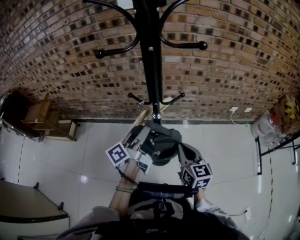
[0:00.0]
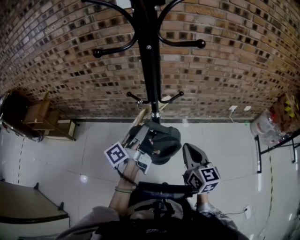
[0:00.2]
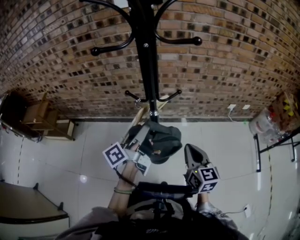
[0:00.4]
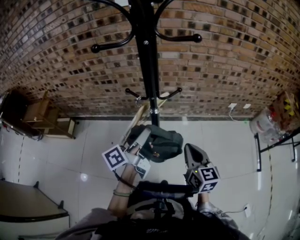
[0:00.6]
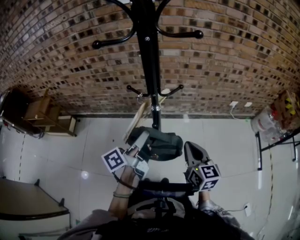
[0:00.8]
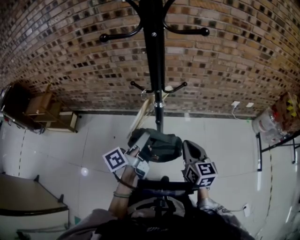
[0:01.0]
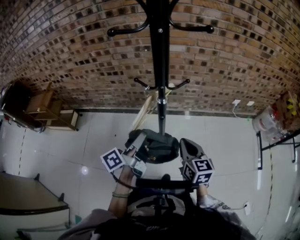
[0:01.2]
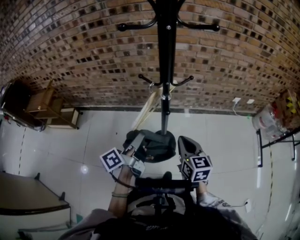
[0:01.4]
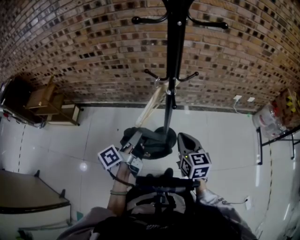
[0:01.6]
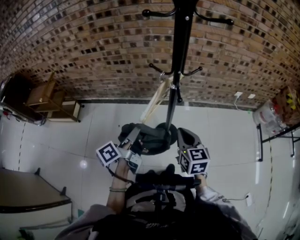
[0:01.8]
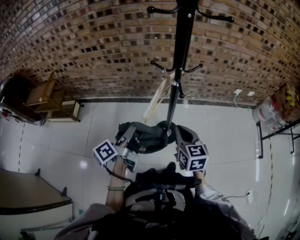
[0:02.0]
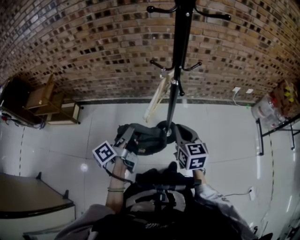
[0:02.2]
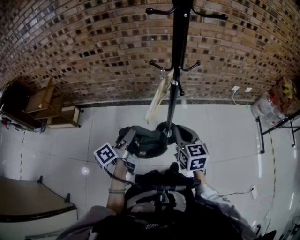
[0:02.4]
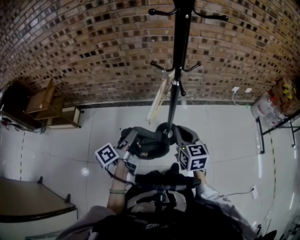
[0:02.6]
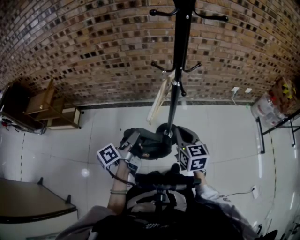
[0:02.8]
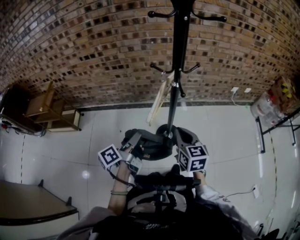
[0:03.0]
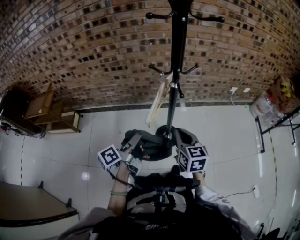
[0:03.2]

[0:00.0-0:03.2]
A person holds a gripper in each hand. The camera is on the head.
0:00.0 to 0:01.6: The right gripper changes place by some 10 cm.
0:01.6 to 0:03.2: The right gripper shifts by roughly 5 cm.

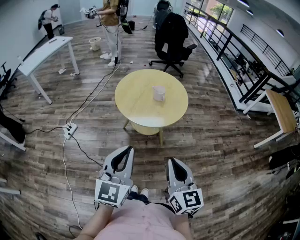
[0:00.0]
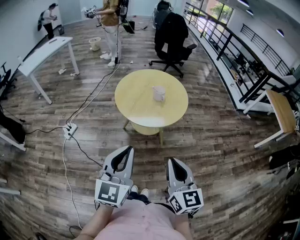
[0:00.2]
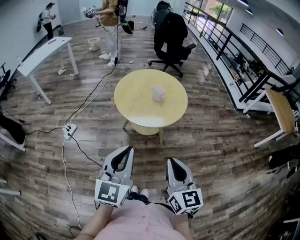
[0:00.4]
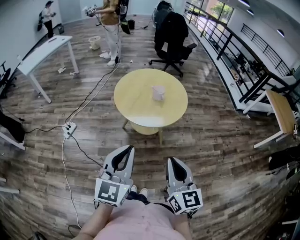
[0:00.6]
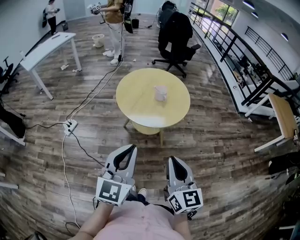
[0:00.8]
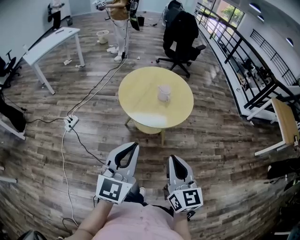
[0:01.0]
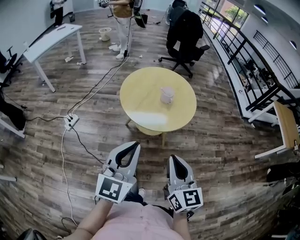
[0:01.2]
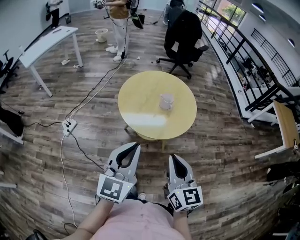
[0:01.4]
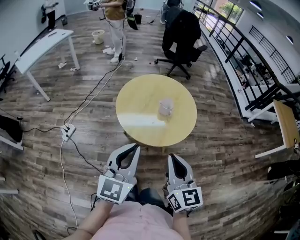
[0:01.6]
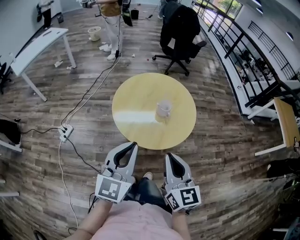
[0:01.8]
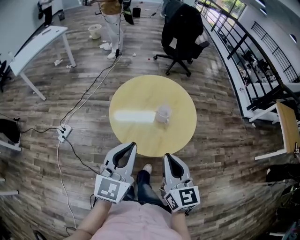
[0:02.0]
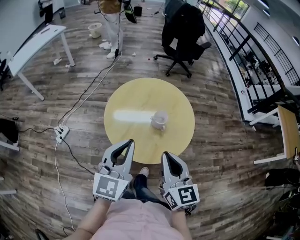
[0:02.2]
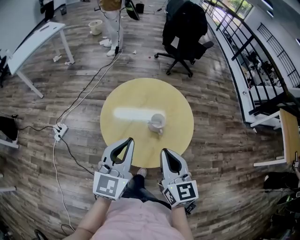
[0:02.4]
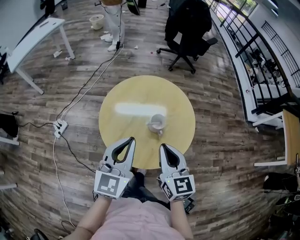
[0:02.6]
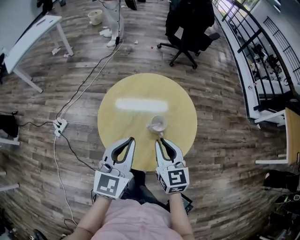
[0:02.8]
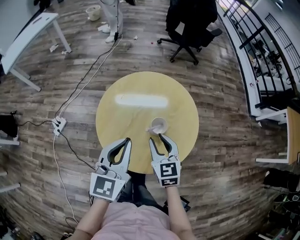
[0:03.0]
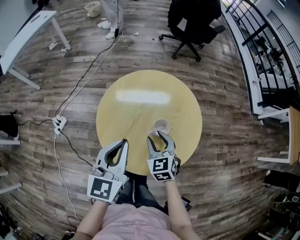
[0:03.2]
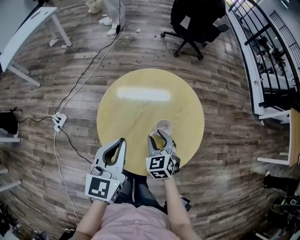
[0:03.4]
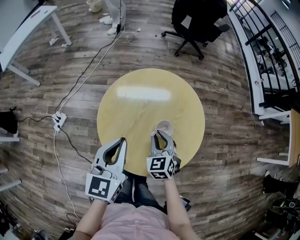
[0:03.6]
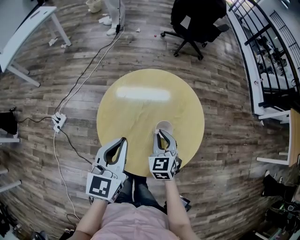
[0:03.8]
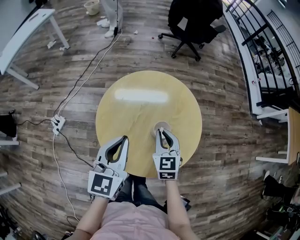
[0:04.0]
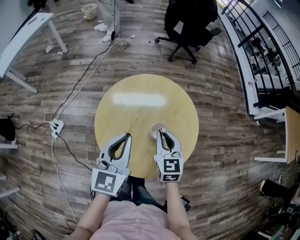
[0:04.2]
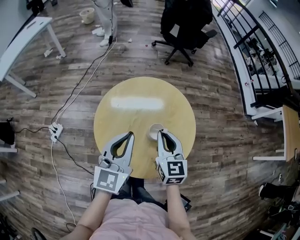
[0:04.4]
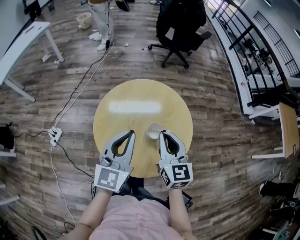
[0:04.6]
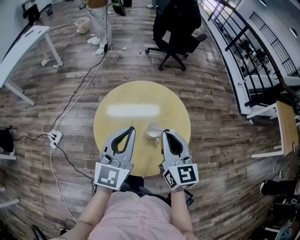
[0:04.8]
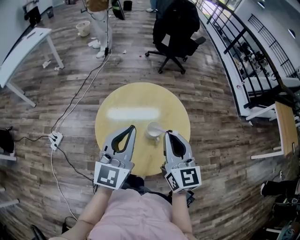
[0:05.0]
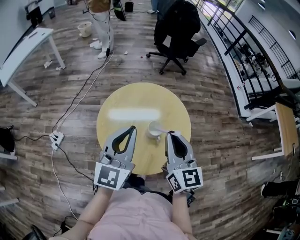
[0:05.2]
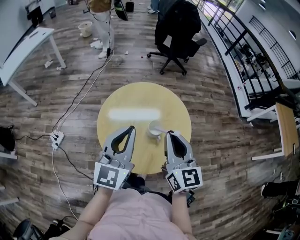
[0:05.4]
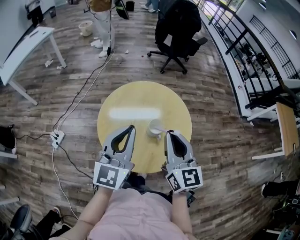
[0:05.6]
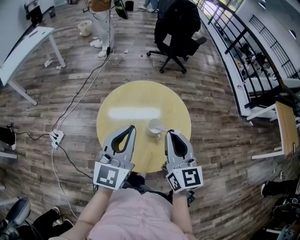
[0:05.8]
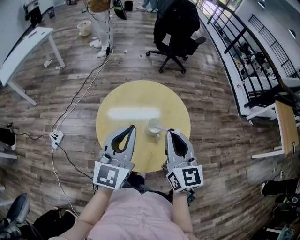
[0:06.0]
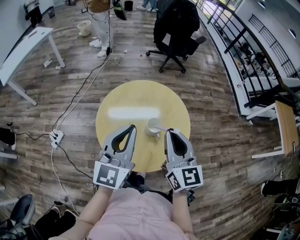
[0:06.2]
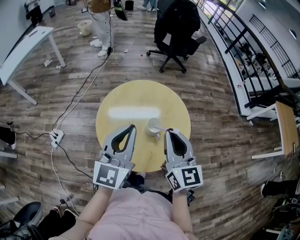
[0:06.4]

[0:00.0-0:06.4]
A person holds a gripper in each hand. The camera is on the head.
0:00.0 to 0:01.6: Both grippers move forward, some 15 cm.
0:01.6 to 0:03.2: The left gripper heads forward, covering approximately 25 cm, while the right gripper goes about 40 cm forward and downward, points its fingers some 30 degrees further downward, and opens its fingers.
0:03.2 to 0:04.8: The left gripper moves upward, some 5 cm; the right gripper heads upward, covering about 20 cm, turns by about 40 degrees, and closes up.
0:04.8 to 0:06.4: The right gripper ends up about 5 cm from where it was.

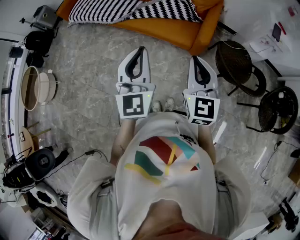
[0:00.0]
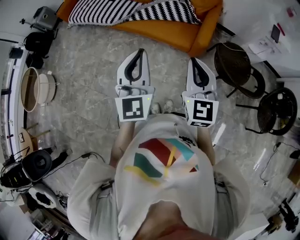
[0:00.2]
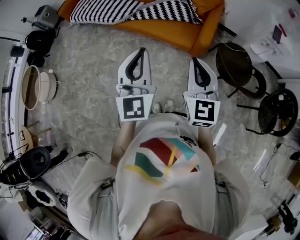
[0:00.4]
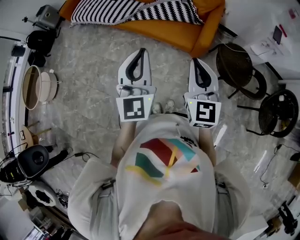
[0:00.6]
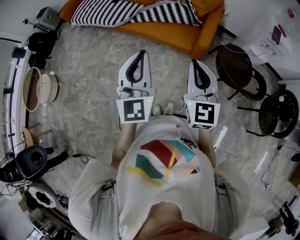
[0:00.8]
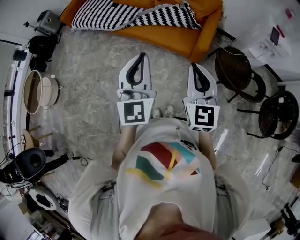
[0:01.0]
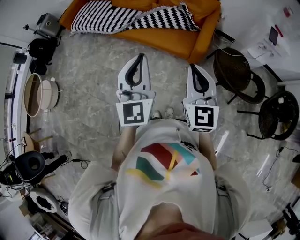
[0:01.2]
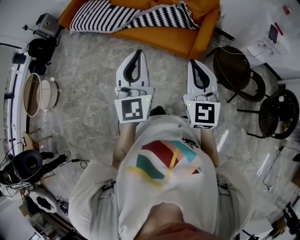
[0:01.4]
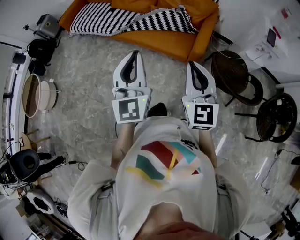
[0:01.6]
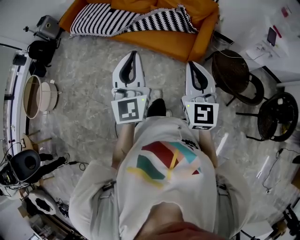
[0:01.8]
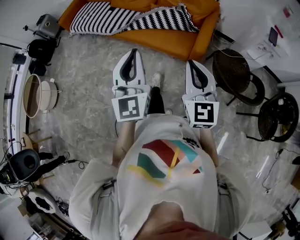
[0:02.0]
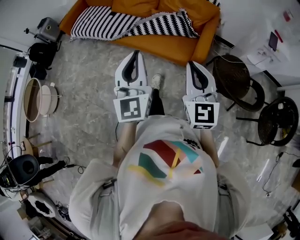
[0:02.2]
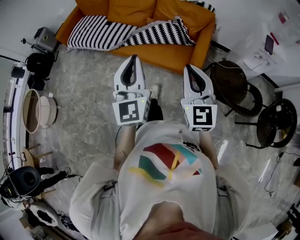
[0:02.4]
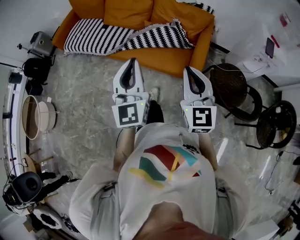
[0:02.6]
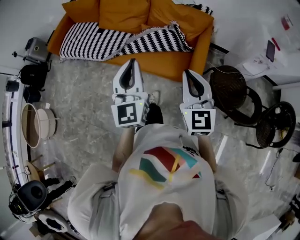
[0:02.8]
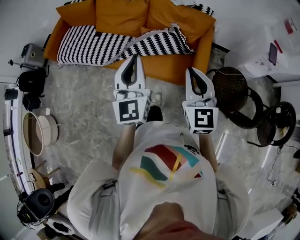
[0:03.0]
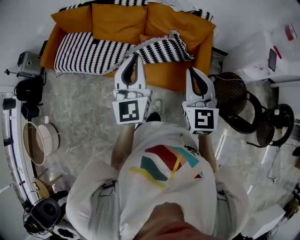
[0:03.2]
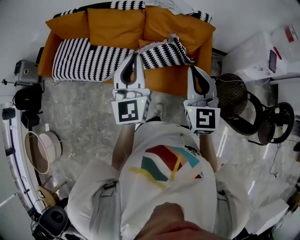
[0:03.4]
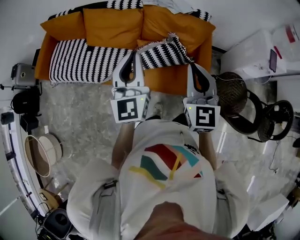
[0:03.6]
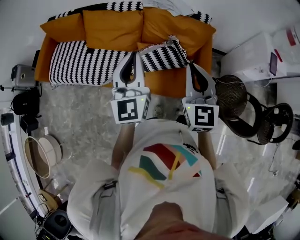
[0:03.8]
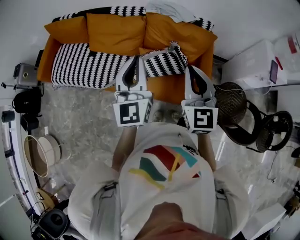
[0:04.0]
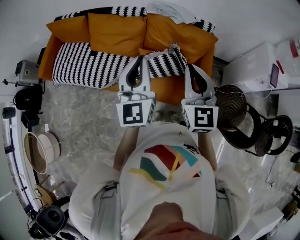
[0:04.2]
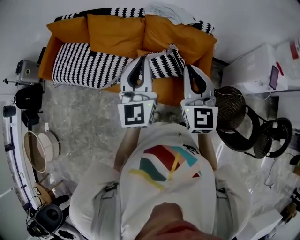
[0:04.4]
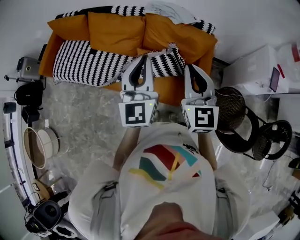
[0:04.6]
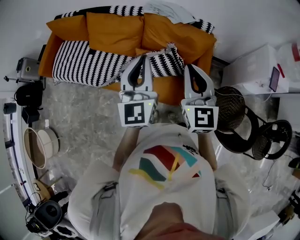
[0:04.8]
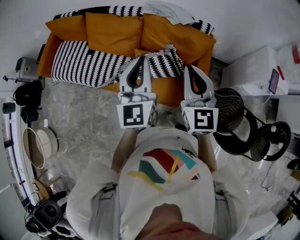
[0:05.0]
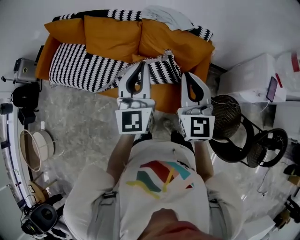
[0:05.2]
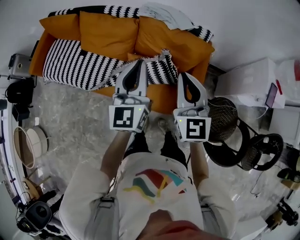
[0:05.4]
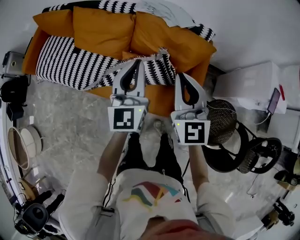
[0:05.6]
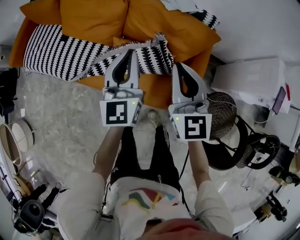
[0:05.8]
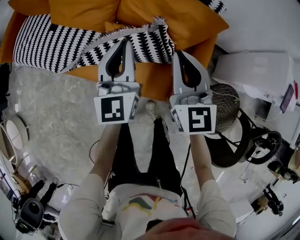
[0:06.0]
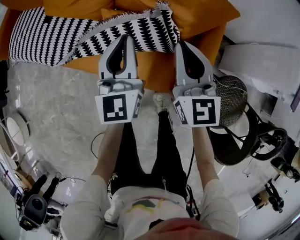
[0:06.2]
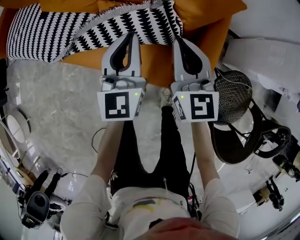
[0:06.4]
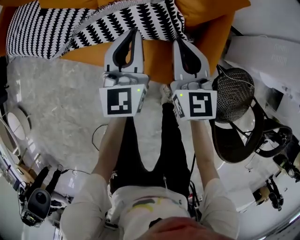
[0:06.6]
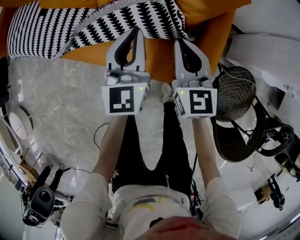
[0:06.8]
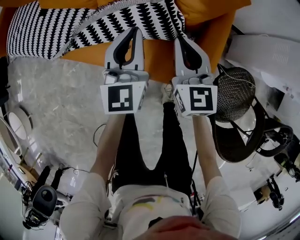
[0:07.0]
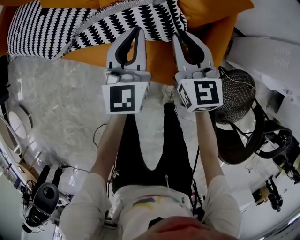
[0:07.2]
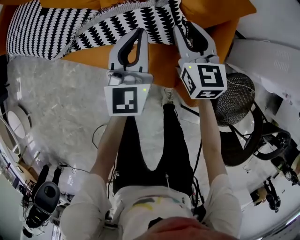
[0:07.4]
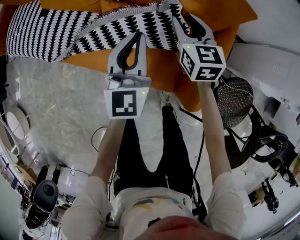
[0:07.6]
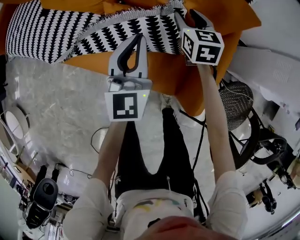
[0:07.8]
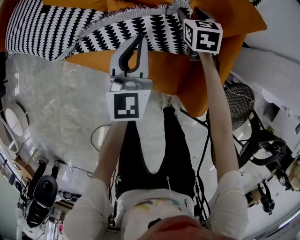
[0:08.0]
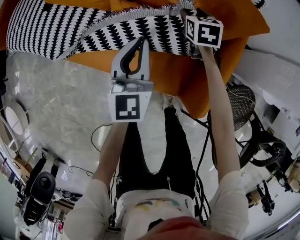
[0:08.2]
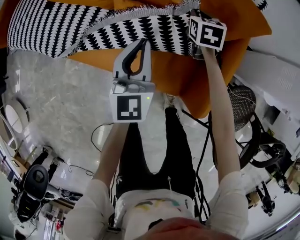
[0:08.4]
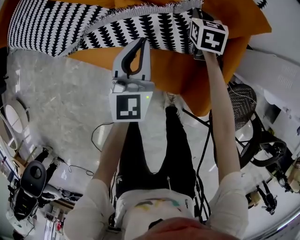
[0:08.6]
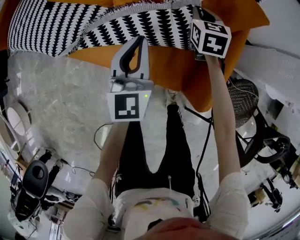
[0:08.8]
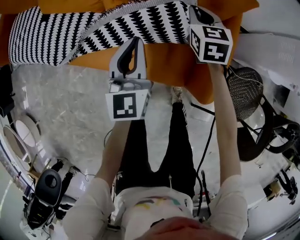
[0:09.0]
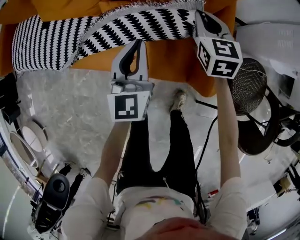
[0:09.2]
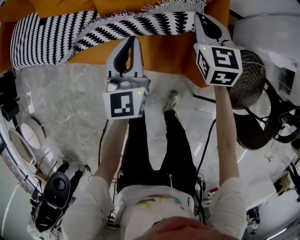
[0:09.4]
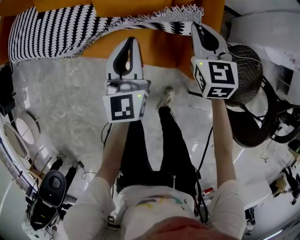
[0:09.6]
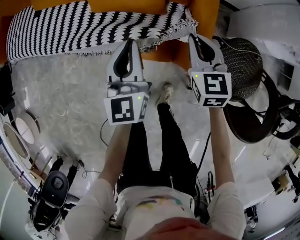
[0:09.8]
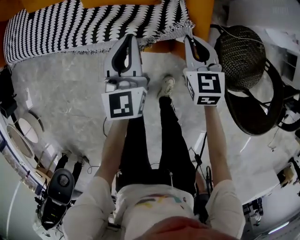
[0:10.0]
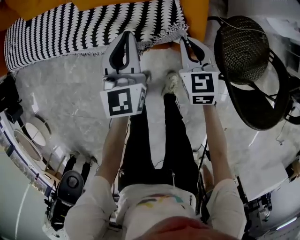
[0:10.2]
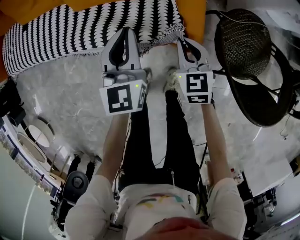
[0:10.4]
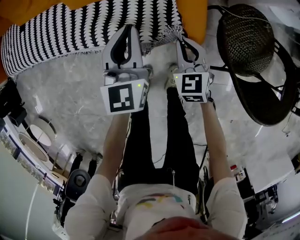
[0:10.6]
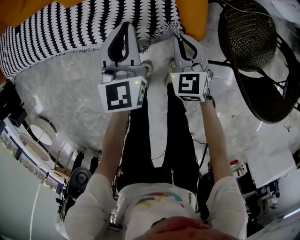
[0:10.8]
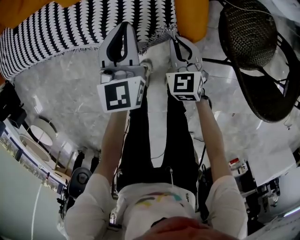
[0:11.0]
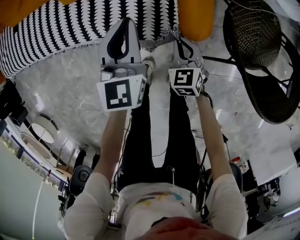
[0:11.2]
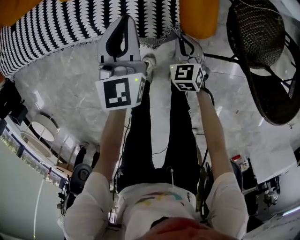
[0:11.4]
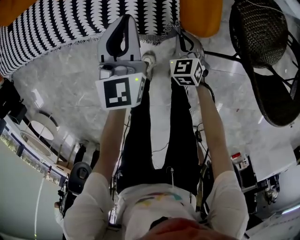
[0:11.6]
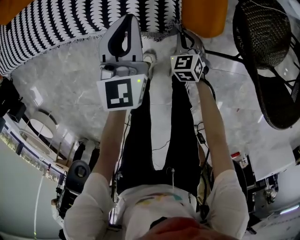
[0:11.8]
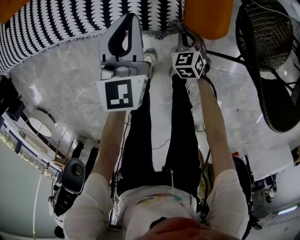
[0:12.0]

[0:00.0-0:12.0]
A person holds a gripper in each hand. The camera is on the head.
0:00.0 to 0:01.6: The grippers move only a little.
0:01.6 to 0:03.0: Both grippers travel together forward, some 25 cm.
0:03.0 to 0:04.4: Both grippers travel together forward, about 20 cm.
0:04.4 to 0:06.0: Both grippers travel together downward and forward, about 25 cm.
0:06.0 to 0:07.6: The left gripper is displaced downward by some 10 cm. Meanwhile the right gripper heads downward and forward, covering approximately 20 cm, and opens.
0:07.6 to 0:09.0: The right gripper moves roughly 10 cm downward and comes back, and closes up.
0:09.0 to 0:10.4: The right gripper travels backward by about 30 cm. The left gripper shifts about 15 cm backward and to the right.
0:10.4 to 0:12.0: The right gripper goes approximately 20 cm downward, and changes its angle by some 20 degrees. Meanwhile the left gripper moves downward, roughly 10 cm.

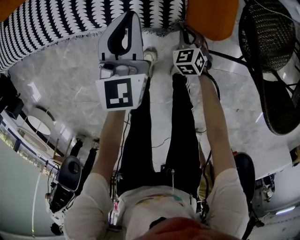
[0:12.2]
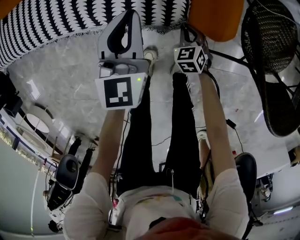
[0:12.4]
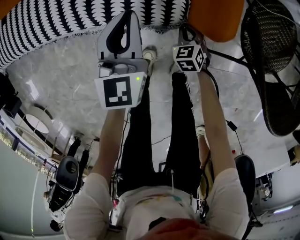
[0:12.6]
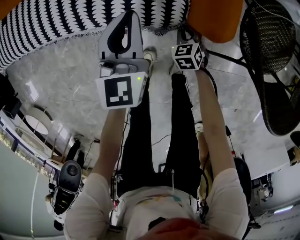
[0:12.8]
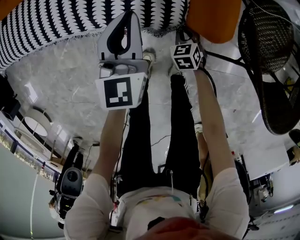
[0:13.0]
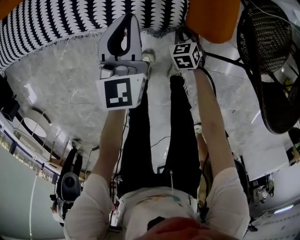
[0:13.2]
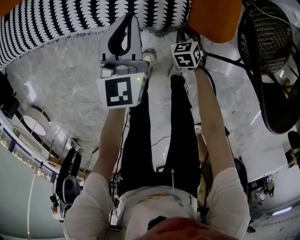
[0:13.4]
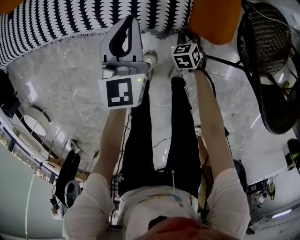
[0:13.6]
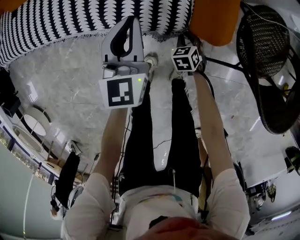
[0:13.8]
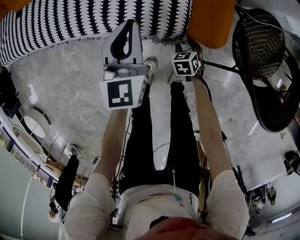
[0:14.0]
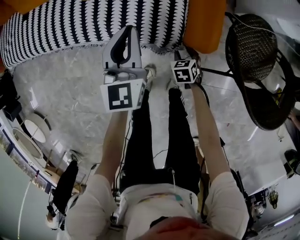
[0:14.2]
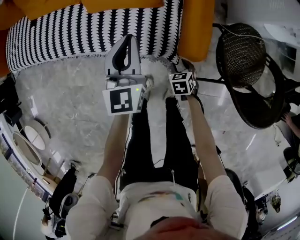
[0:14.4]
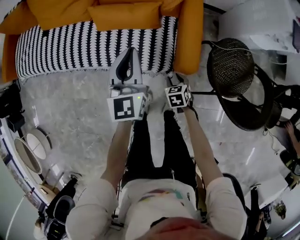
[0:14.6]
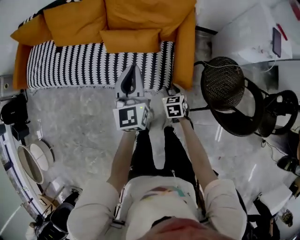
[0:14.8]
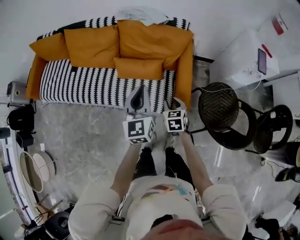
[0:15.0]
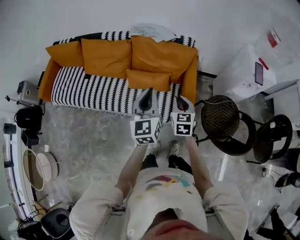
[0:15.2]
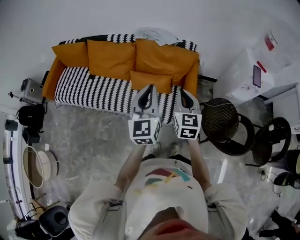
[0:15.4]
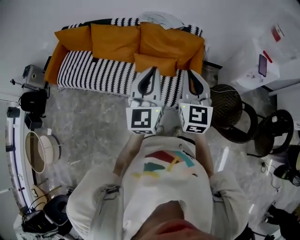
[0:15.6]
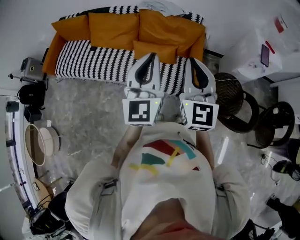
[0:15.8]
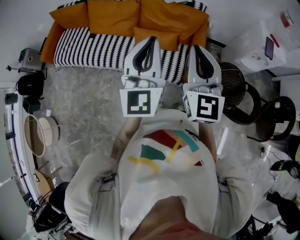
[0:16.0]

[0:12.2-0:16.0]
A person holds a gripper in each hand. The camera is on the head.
0:12.2 to 0:13.4: The grippers stay close to where they were, moving slightly.
0:13.4 to 0:14.8: Both grippers travel together upward, some 25 cm. The right gripper opens up.
0:14.8 to 0:16.0: The left gripper moves upward and backward, approximately 30 cm. Meanwhile the right gripper is displaced upward by about 50 cm, tips its fingers upward by about 60 degrees, and closes its fingers.
